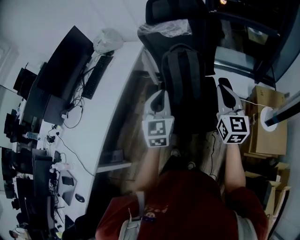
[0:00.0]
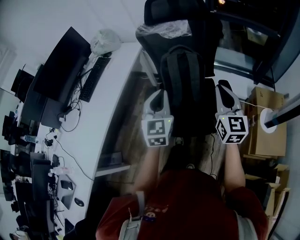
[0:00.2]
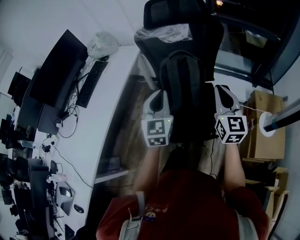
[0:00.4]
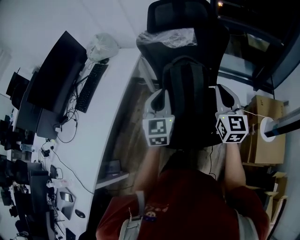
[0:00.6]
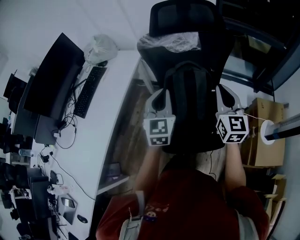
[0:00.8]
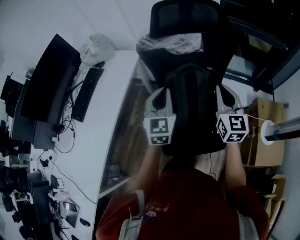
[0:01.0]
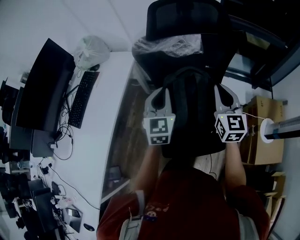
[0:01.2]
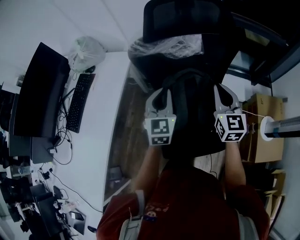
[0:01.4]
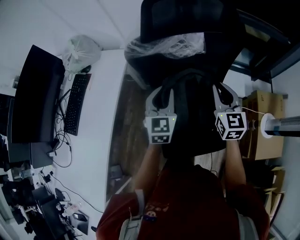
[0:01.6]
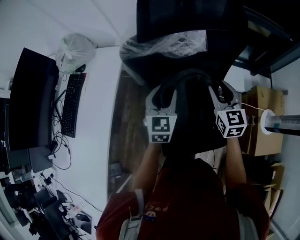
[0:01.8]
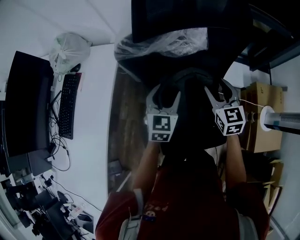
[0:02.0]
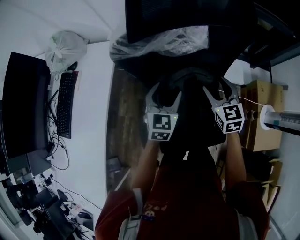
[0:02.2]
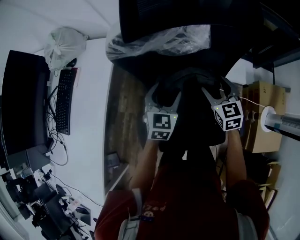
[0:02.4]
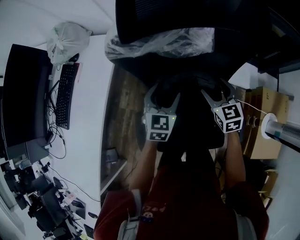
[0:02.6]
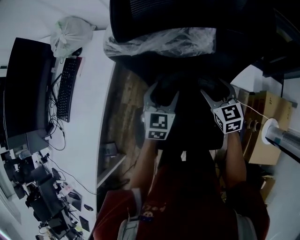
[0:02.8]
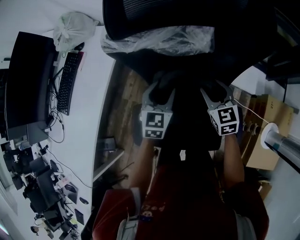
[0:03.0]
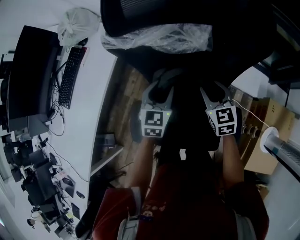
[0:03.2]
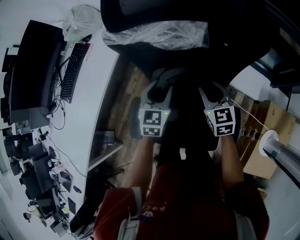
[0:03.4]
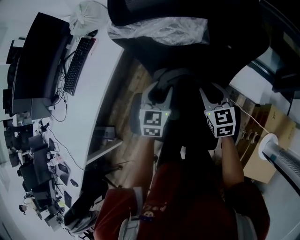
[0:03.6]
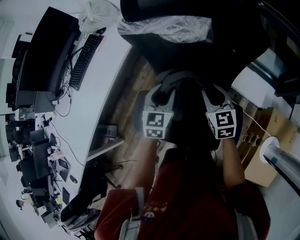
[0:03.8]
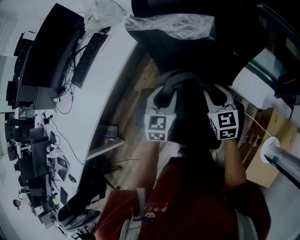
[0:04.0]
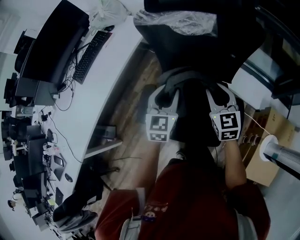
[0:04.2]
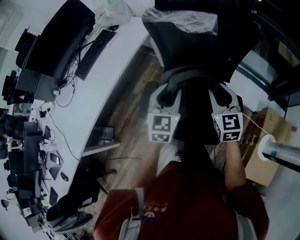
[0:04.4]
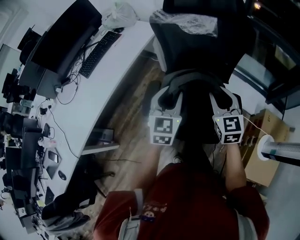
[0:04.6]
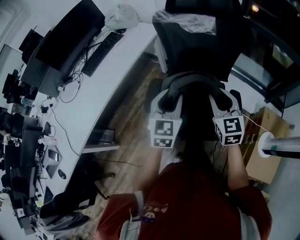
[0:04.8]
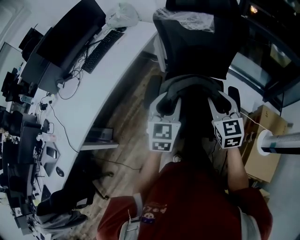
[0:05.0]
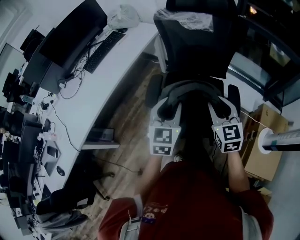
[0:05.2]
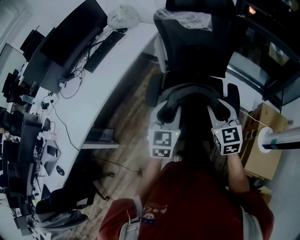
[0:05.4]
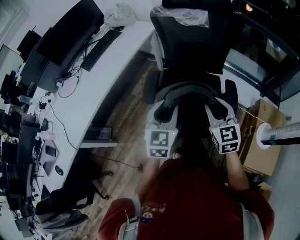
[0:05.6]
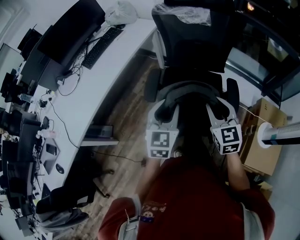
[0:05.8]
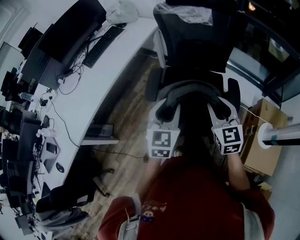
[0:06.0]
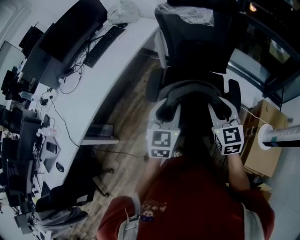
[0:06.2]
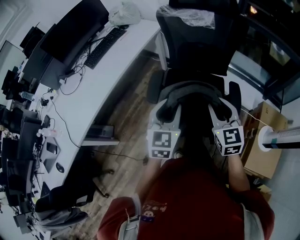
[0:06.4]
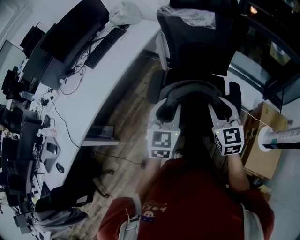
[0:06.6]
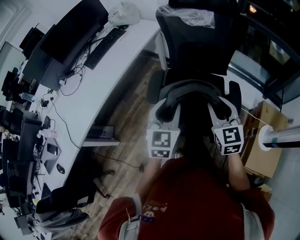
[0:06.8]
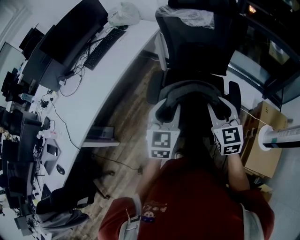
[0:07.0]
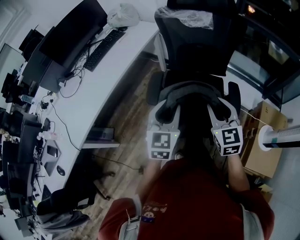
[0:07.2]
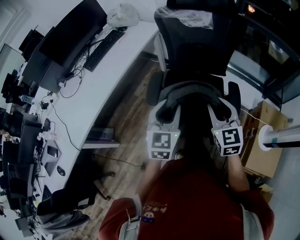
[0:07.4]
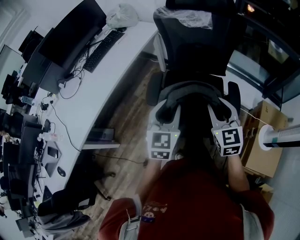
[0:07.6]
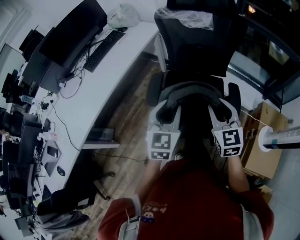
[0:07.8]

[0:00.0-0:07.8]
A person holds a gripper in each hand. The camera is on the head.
0:00.0 to 0:01.6: The two grippers go roughly 35 cm forward.
0:01.6 to 0:03.2: The two grippers go some 15 cm downward and forward. The left gripper opens and closes again. Meanwhile the right gripper rotates about 30 degrees, and opens up.
0:03.2 to 0:04.6: The grippers both shift backward and upward by approximately 30 cm.
0:04.6 to 0:06.2: The two grippers go roughly 15 cm backward.
0:06.2 to 0:07.8: The grippers stay close to where they were, moving slightly.

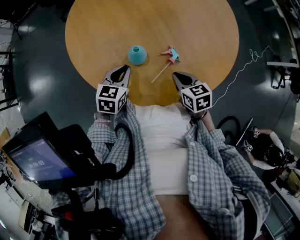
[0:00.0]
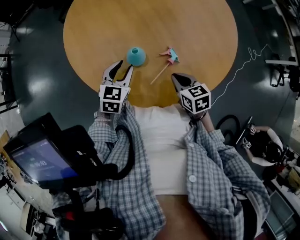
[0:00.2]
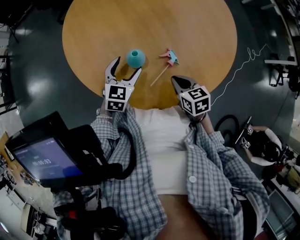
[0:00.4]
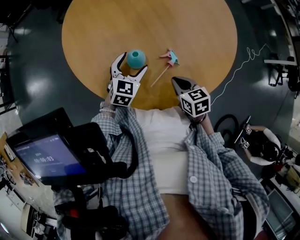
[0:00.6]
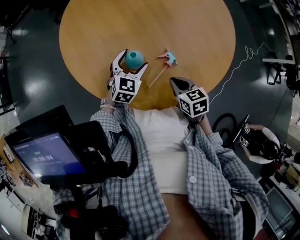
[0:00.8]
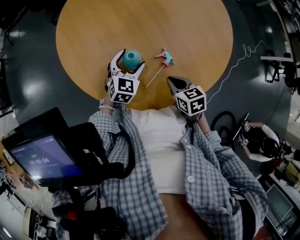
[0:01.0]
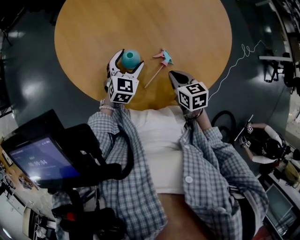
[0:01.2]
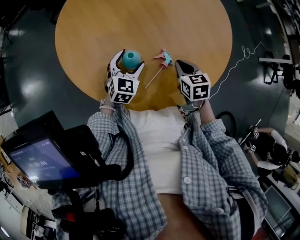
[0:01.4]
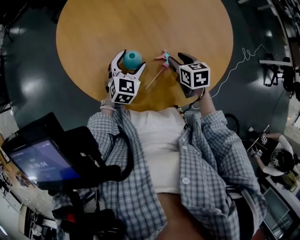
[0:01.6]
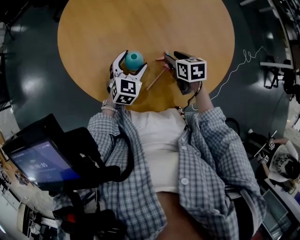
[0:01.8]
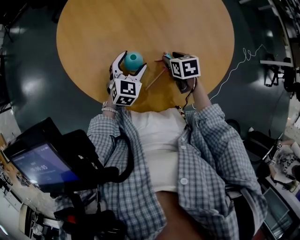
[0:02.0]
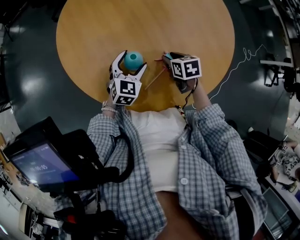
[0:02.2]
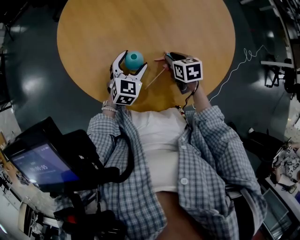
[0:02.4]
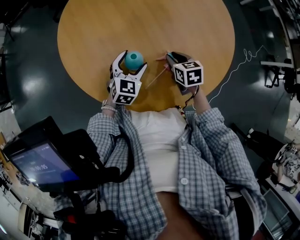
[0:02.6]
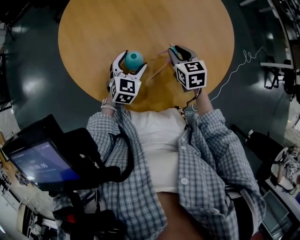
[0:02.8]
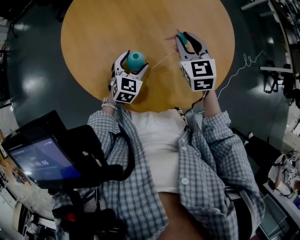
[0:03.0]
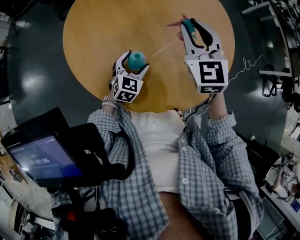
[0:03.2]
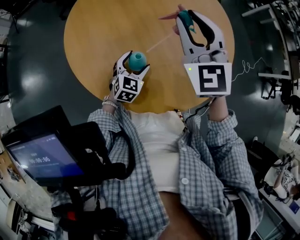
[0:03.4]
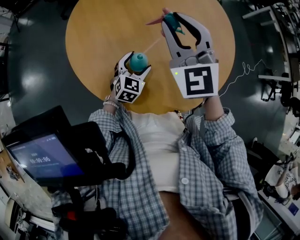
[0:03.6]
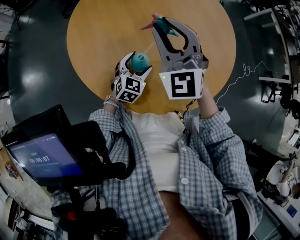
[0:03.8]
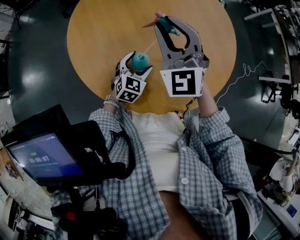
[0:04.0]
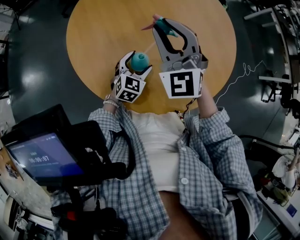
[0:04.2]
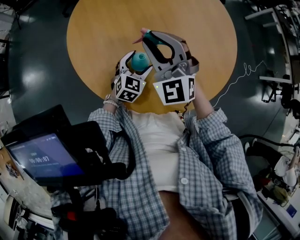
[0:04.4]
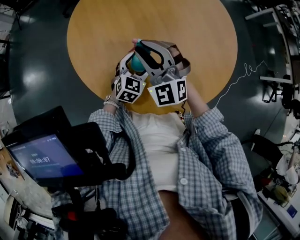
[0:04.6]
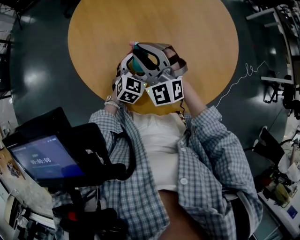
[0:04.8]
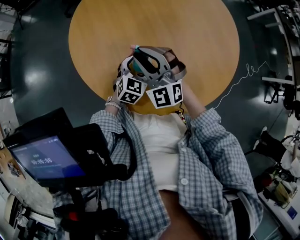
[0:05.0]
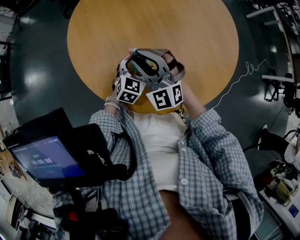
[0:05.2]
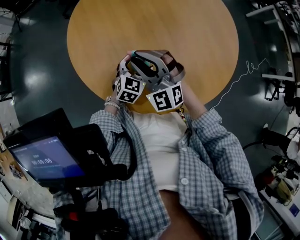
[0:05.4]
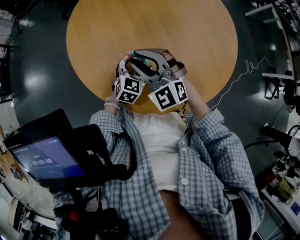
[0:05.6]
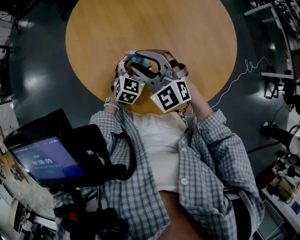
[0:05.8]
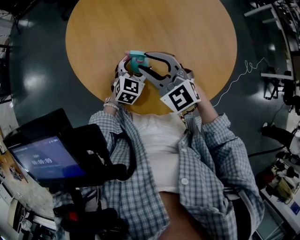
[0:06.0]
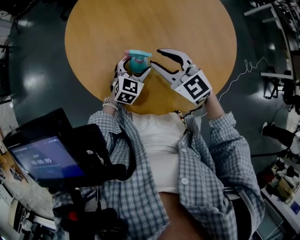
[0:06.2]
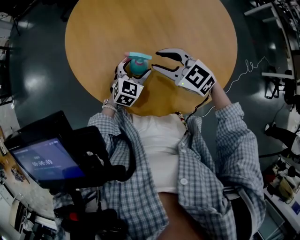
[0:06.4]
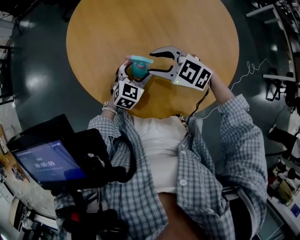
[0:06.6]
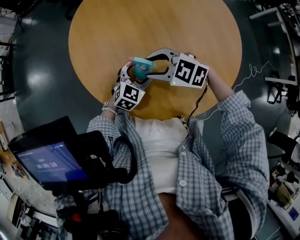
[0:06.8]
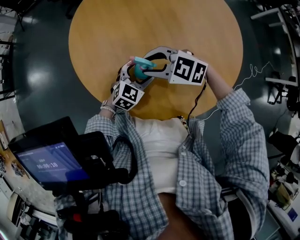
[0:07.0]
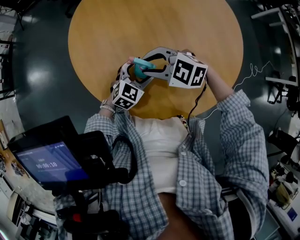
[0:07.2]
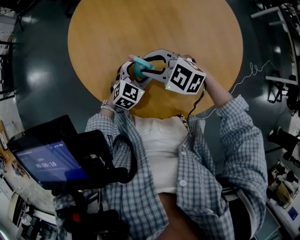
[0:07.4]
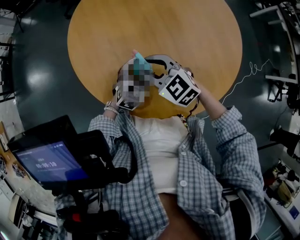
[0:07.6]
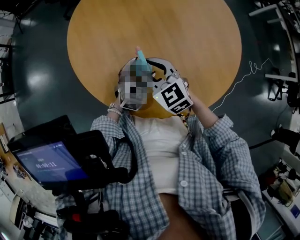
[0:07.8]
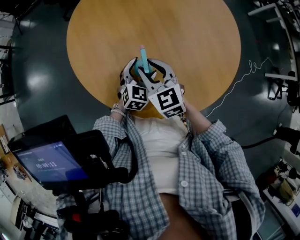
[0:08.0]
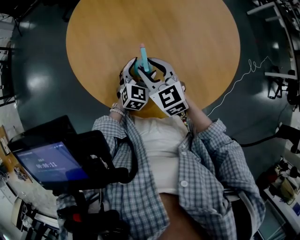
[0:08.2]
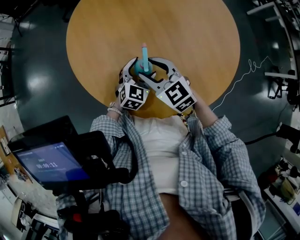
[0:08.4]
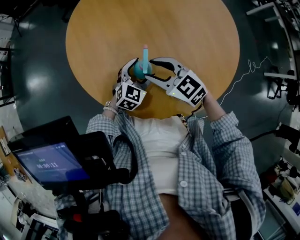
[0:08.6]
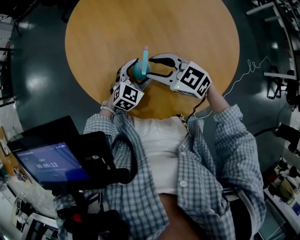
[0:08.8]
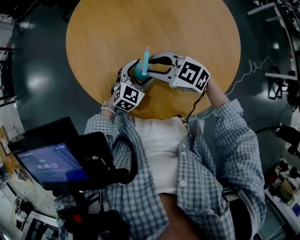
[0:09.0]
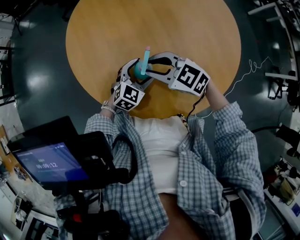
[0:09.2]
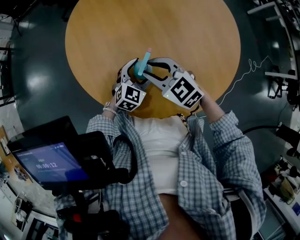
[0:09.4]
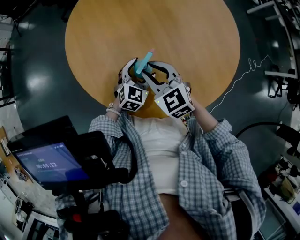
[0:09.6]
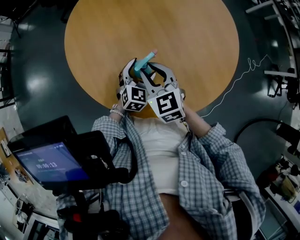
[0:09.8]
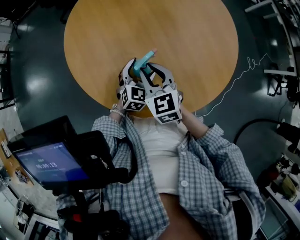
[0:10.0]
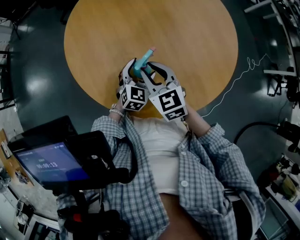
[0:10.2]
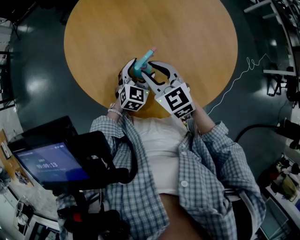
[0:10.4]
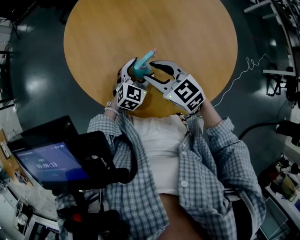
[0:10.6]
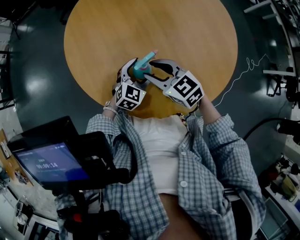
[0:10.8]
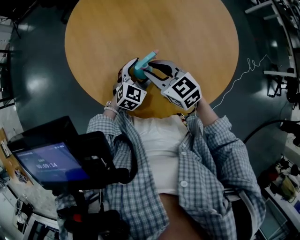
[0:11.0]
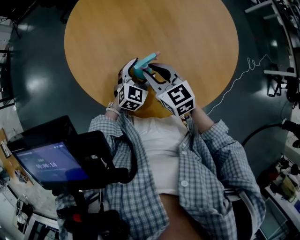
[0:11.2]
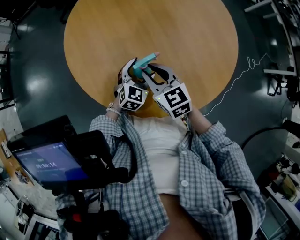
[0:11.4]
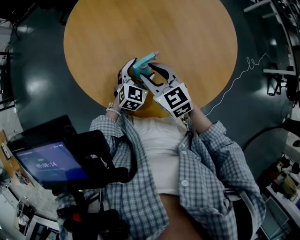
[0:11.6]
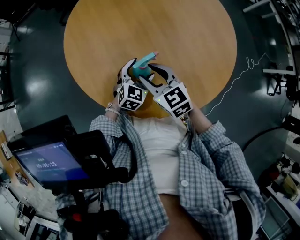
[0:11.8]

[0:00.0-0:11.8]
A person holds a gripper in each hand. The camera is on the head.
0:00.0 to 0:01.4: The right gripper ends up approximately 5 cm from where it was; the left gripper heads to the right, covering roughly 5 cm, rotates approximately 20 degrees, and opens its fingers.
0:01.4 to 0:03.0: The right gripper moves upward and forward, approximately 15 cm, turns by roughly 30 degrees, and opens up.
0:03.0 to 0:04.4: The right gripper moves to the left and upward, some 15 cm, and changes its angle by some 40 degrees.
0:04.4 to 0:06.0: The right gripper moves backward and downward, roughly 10 cm, and changes its angle by approximately 20 degrees.
0:06.0 to 0:07.4: The right gripper travels downward by some 5 cm, and turns by approximately 30 degrees.
0:07.4 to 0:08.8: The right gripper swivels approximately 20 degrees.
0:08.8 to 0:10.4: The right gripper swivels roughly 30 degrees.
0:10.4 to 0:11.8: There are only small adjustments of the grippers.

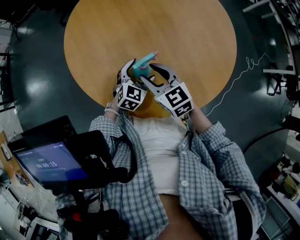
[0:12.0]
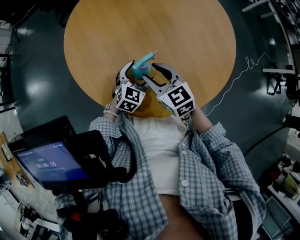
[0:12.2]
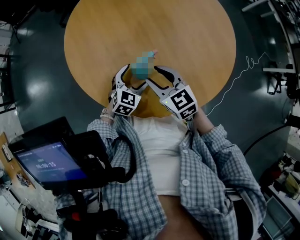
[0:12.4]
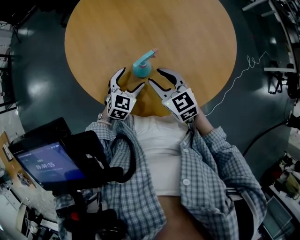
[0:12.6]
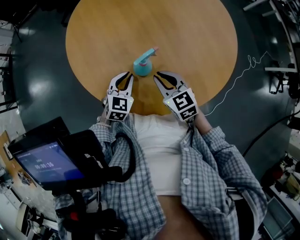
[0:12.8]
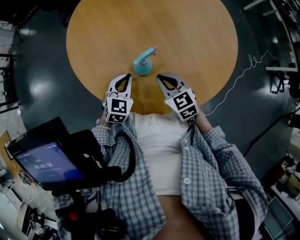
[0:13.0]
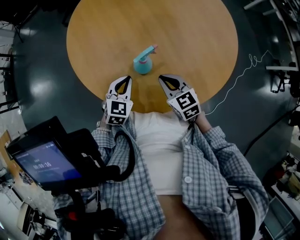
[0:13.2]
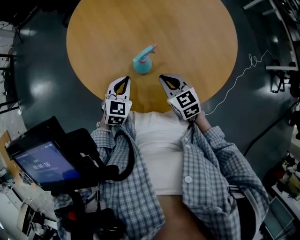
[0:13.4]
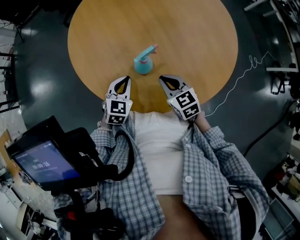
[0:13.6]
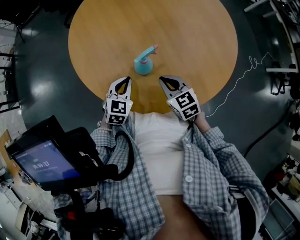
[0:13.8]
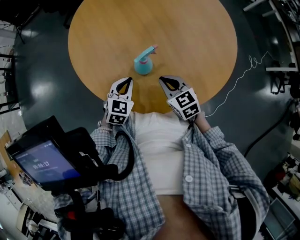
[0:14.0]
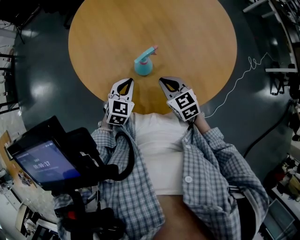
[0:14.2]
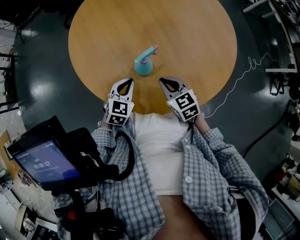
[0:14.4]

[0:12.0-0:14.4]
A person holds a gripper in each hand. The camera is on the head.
0:12.0 to 0:13.2: The left gripper travels to the left by roughly 10 cm, and closes up. The right gripper travels downward and to the right by approximately 10 cm, and closes its fingers.
0:13.2 to 0:14.4: The grippers move only a little.

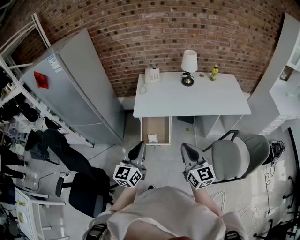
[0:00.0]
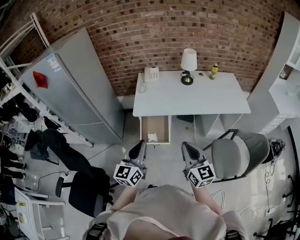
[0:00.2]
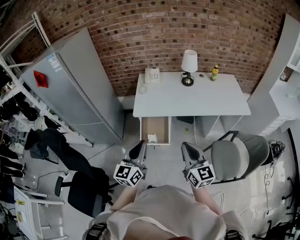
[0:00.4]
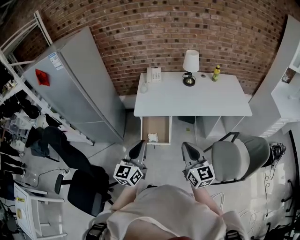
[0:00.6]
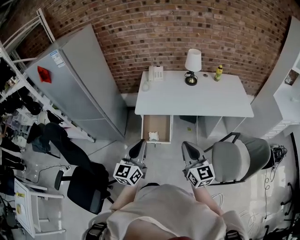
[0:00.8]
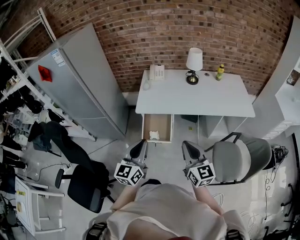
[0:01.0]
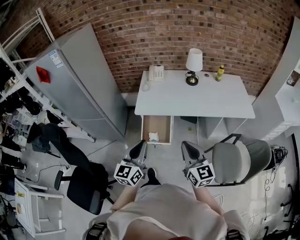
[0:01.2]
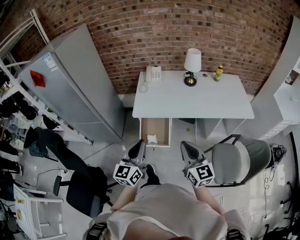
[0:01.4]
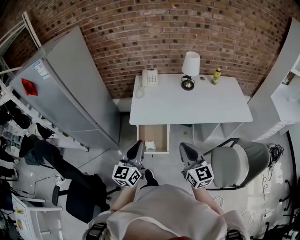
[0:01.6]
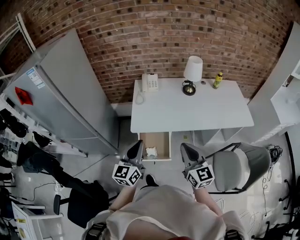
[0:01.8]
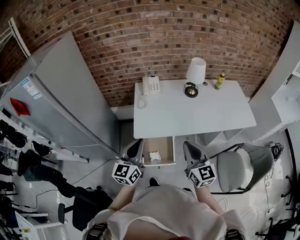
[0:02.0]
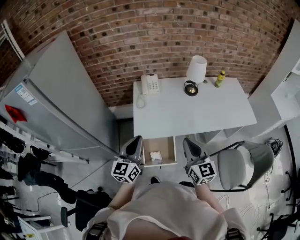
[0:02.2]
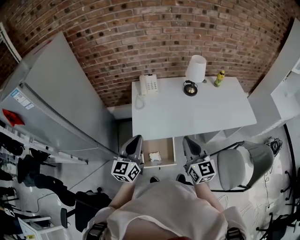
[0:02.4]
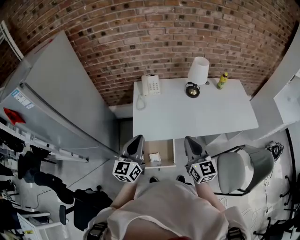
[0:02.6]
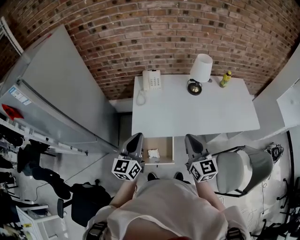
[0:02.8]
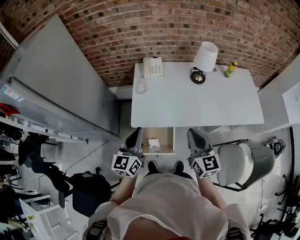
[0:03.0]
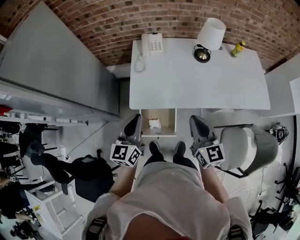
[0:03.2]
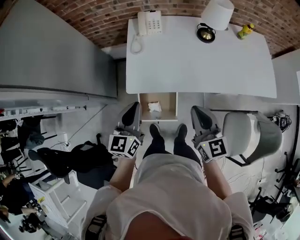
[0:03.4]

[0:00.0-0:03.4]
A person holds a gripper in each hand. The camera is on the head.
0:00.0 to 0:01.6: The two grippers go approximately 10 cm forward.
0:01.6 to 0:03.4: Both grippers travel together forward and downward, some 25 cm.
